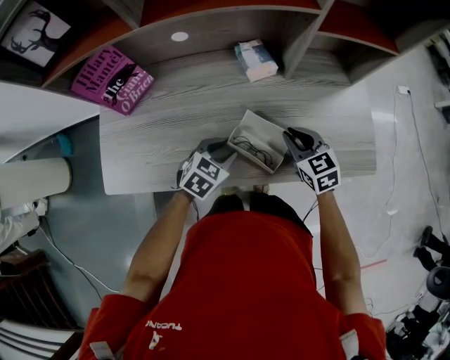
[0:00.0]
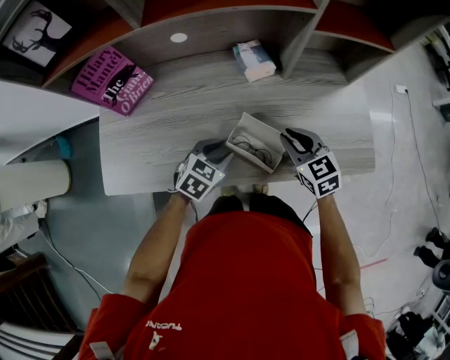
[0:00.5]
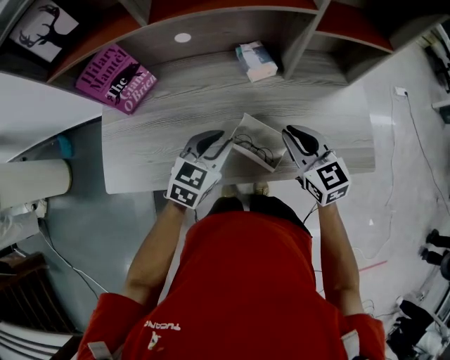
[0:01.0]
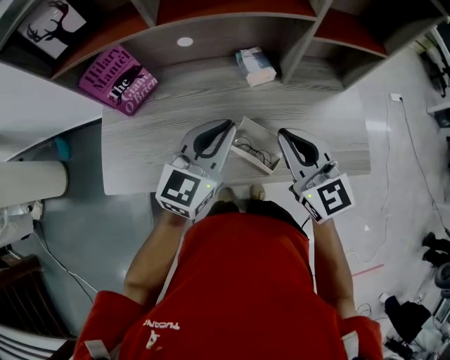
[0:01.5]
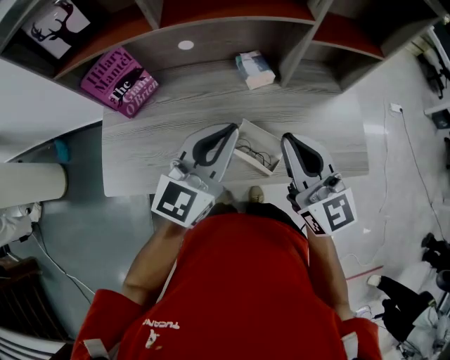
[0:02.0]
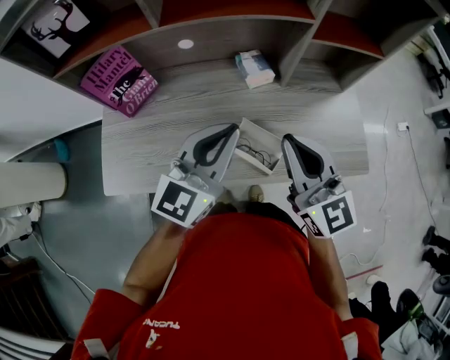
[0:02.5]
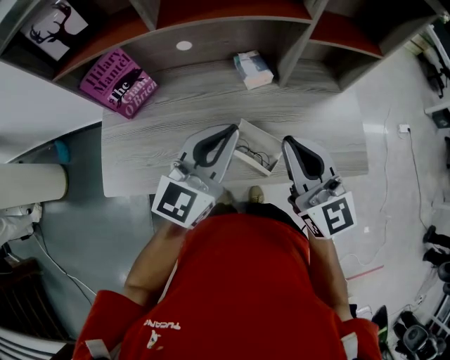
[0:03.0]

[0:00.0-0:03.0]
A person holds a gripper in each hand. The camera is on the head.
0:00.0 to 0:01.5: The grippers both shift upward by approximately 20 cm. The right gripper turns by roughly 30 degrees; the left gripper tilts its fingers about 40 degrees upward, and closes.
0:01.5 to 0:03.0: The left gripper moves about 5 cm. The right gripper changes place by approximately 5 cm.

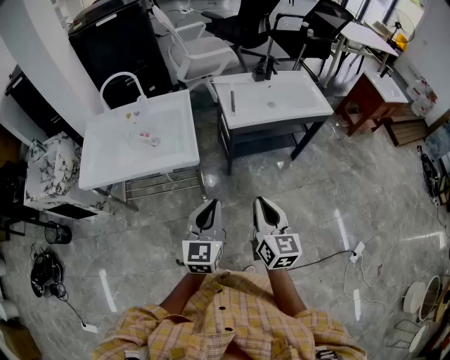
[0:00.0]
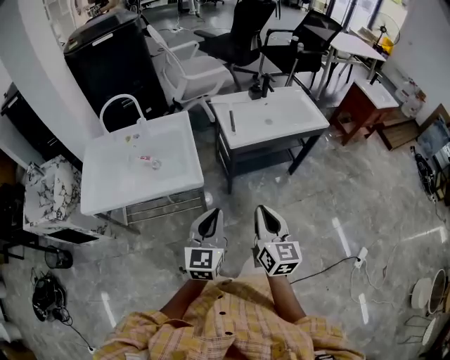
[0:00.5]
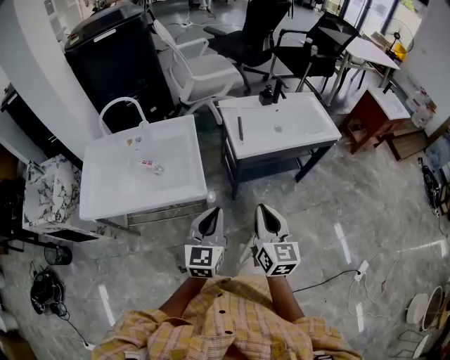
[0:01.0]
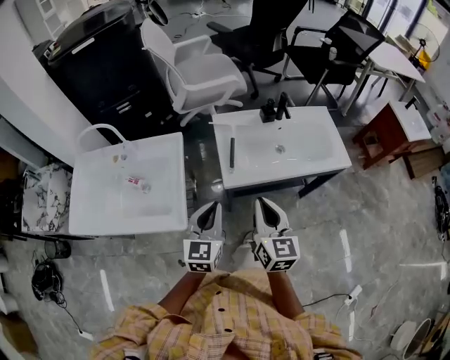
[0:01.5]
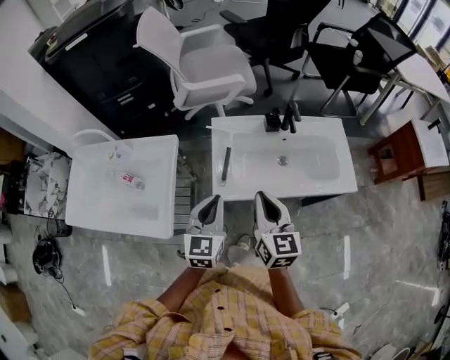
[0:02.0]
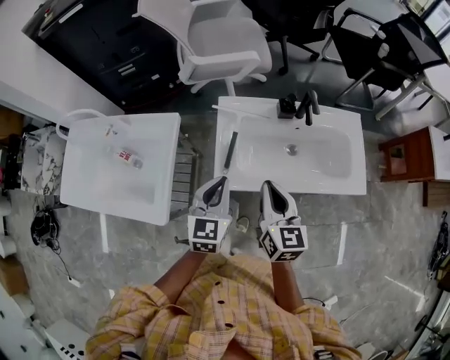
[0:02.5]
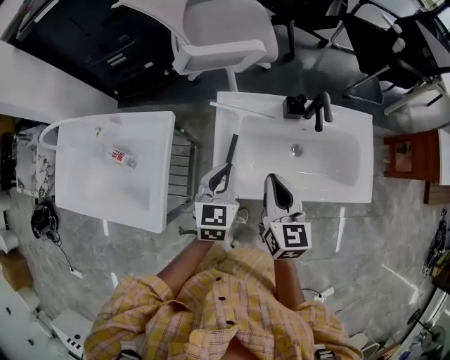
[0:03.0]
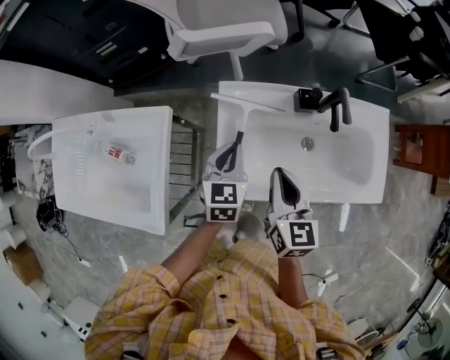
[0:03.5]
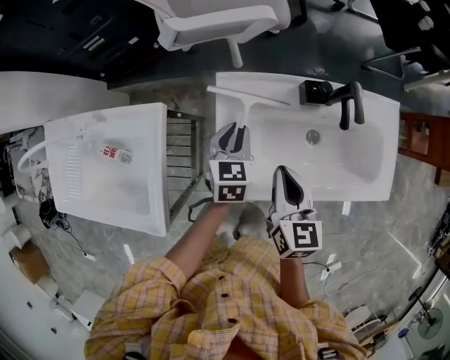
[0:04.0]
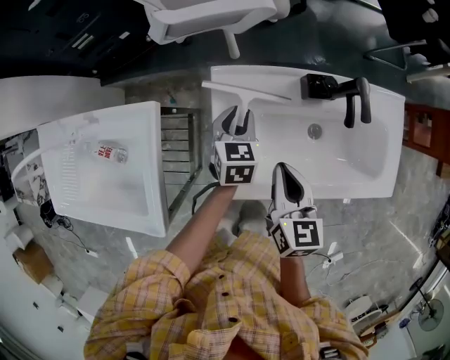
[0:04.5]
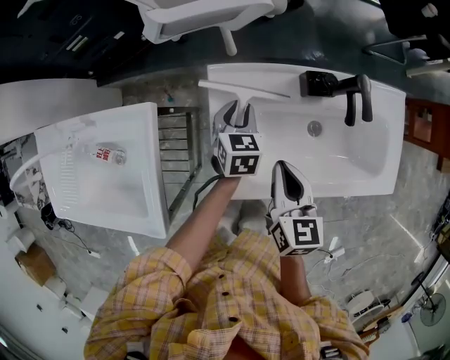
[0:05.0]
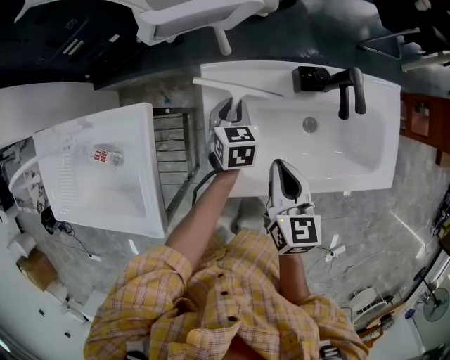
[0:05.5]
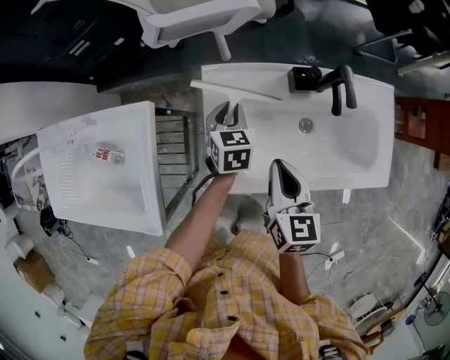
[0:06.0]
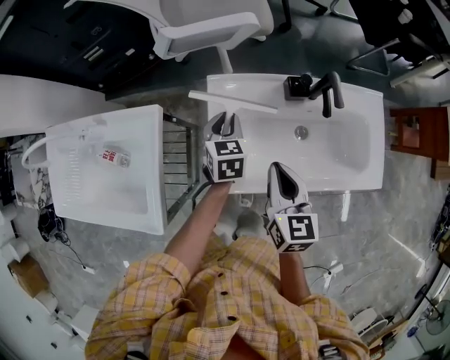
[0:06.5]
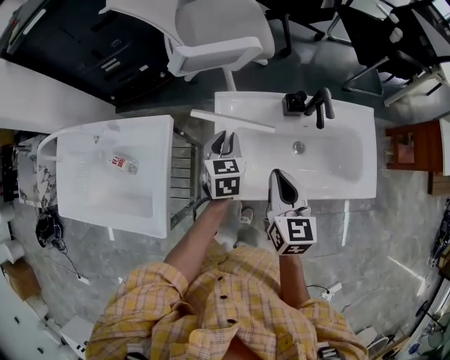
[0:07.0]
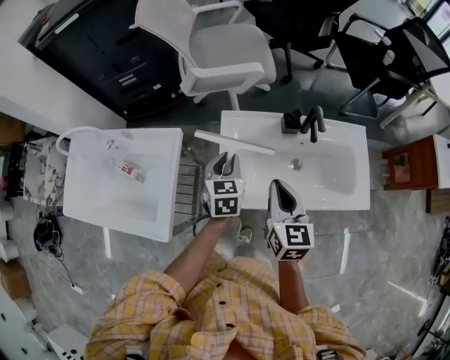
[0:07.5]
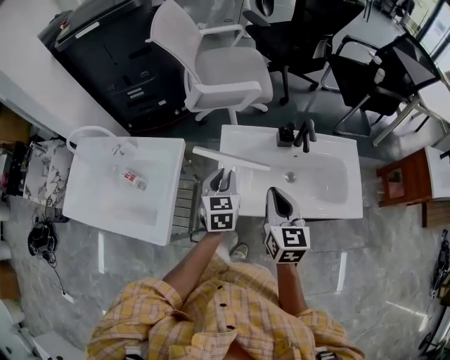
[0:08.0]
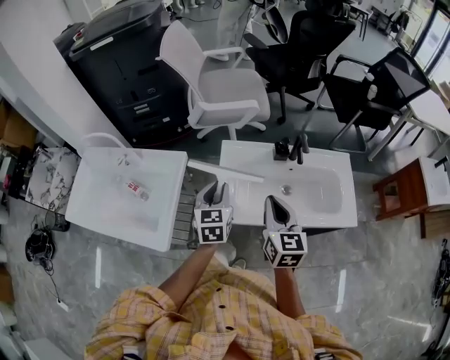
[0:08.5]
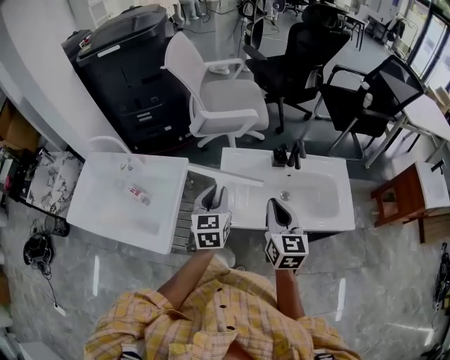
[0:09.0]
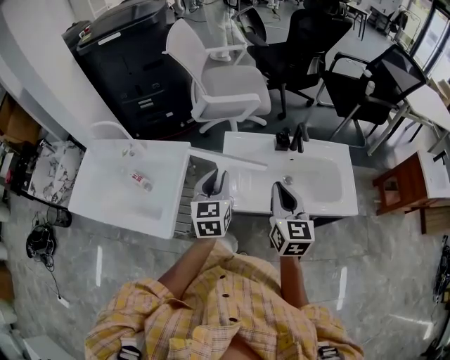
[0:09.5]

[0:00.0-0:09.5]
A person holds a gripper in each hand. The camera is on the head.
0:00.0 to 0:02.0: The two grippers travel together, forward, roughly 40 cm.
0:02.0 to 0:04.0: Both grippers move forward and downward, some 25 cm. The left gripper changes its angle by some 20 degrees.
0:04.0 to 0:05.5: The left gripper moves downward, about 5 cm.
0:05.5 to 0:07.5: Both grippers travel together upward and backward, some 15 cm.
0:07.5 to 0:09.5: The left gripper moves upward and backward, some 15 cm; the right gripper goes about 10 cm upward and backward.

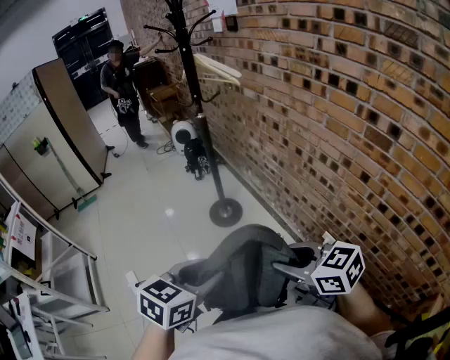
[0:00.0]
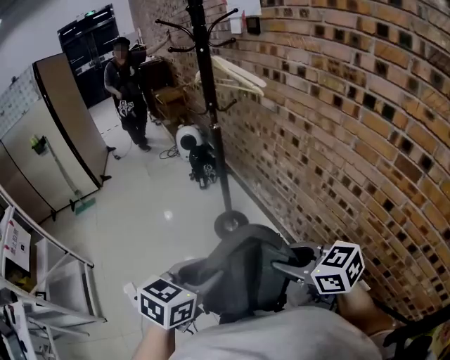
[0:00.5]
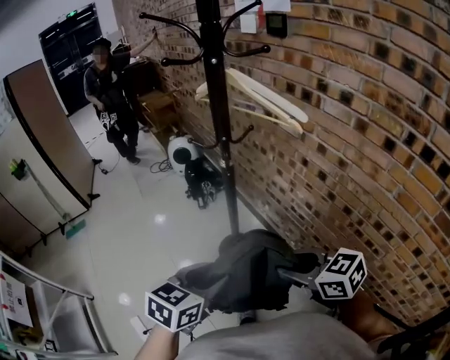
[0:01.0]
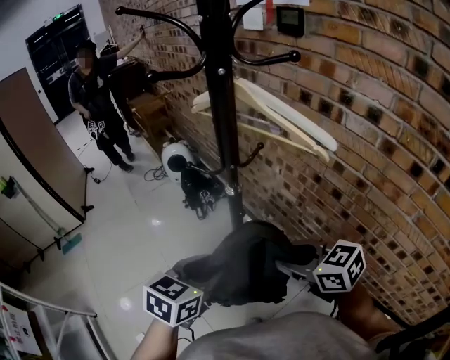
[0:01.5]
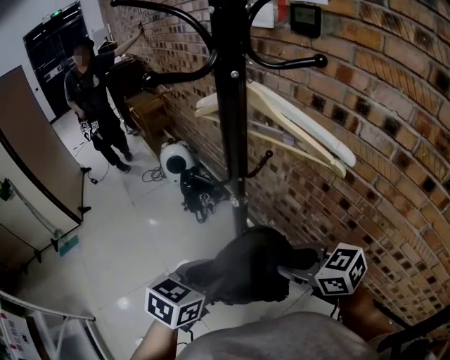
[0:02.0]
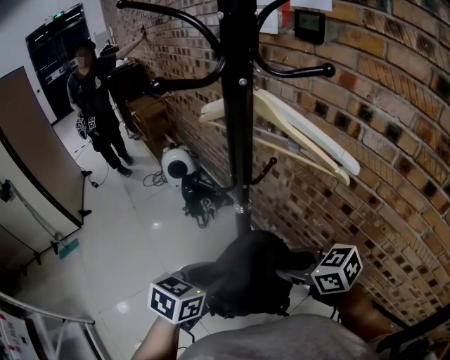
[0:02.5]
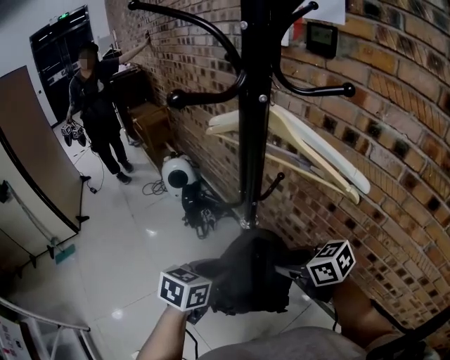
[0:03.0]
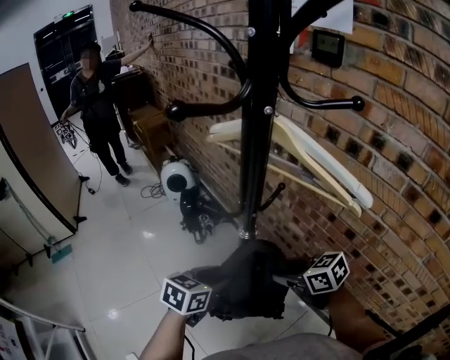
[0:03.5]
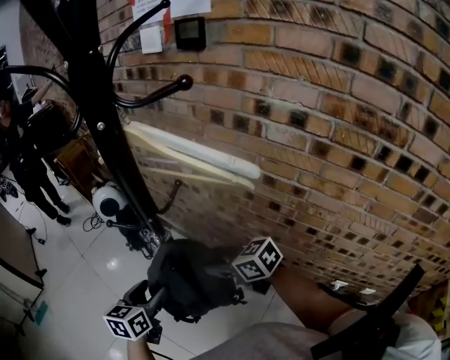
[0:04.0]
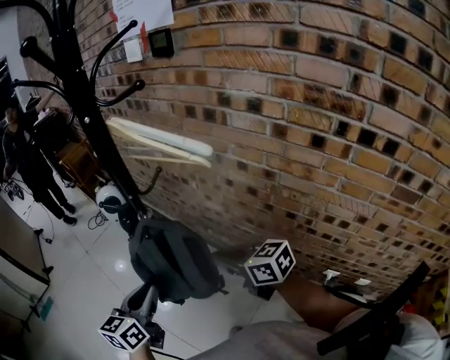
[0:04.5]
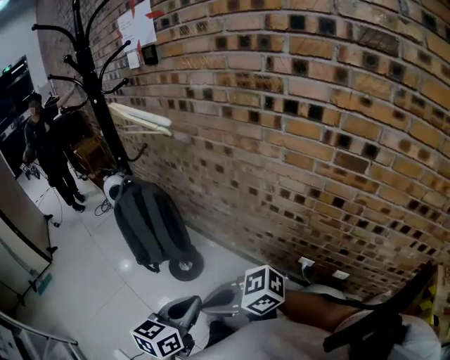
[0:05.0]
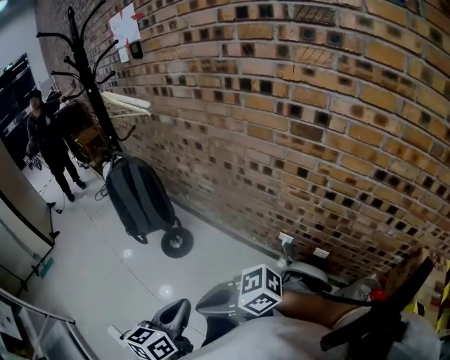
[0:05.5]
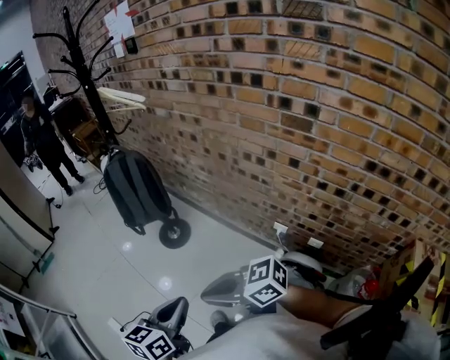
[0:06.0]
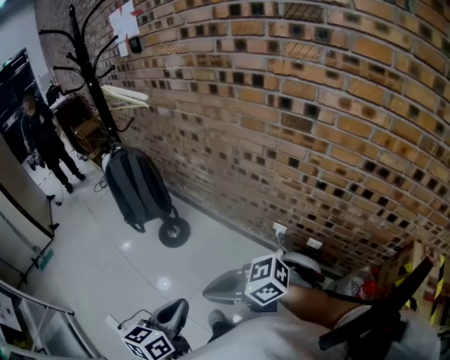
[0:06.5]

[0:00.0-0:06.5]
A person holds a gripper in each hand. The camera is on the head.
0:00.0 to 0:02.0: The two grippers travel together, forward, about 60 cm.
0:02.0 to 0:04.5: The right gripper goes about 5 cm to the right, moves roughly 10 cm forward and comes back, changes its angle by about 20 degrees, and closes its fingers, while the left gripper reaches roughly 10 cm forward, then returns, and opens, then closes again.
0:04.5 to 0:06.5: Both grippers are carried some 50 cm. The right gripper turns by some 30 degrees.

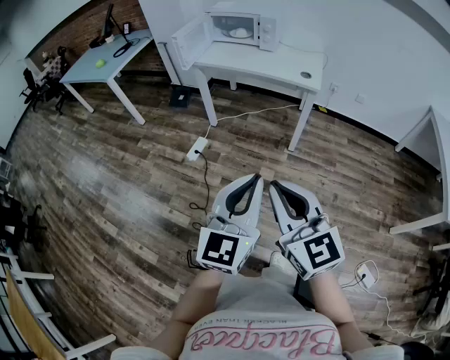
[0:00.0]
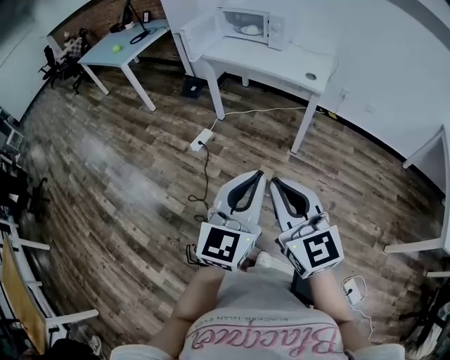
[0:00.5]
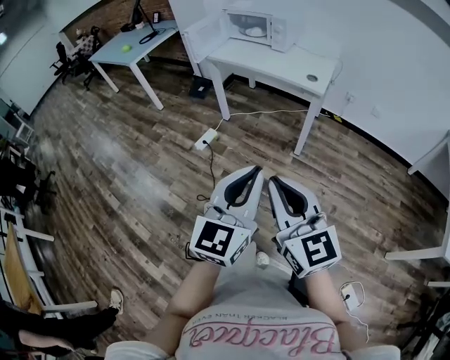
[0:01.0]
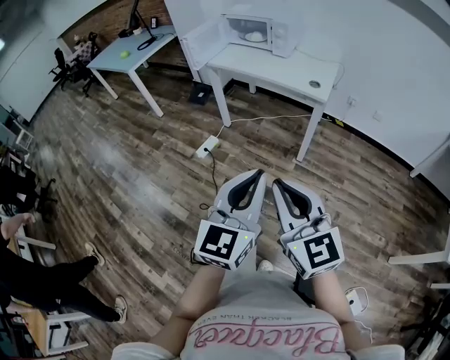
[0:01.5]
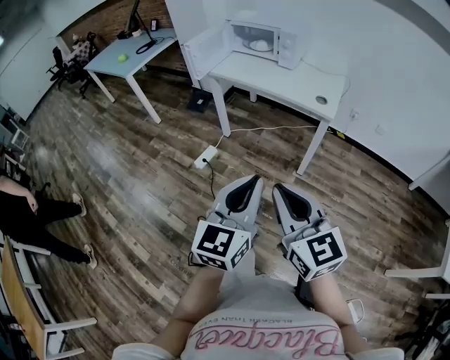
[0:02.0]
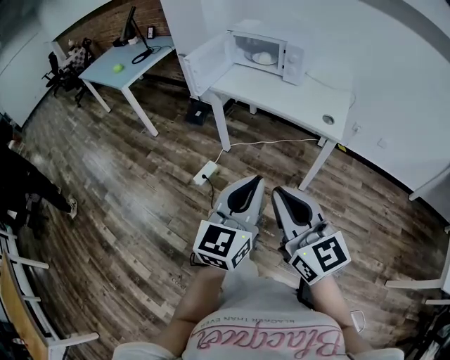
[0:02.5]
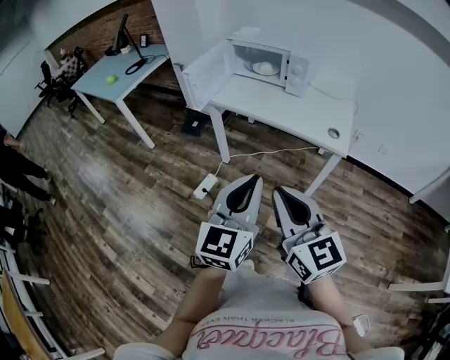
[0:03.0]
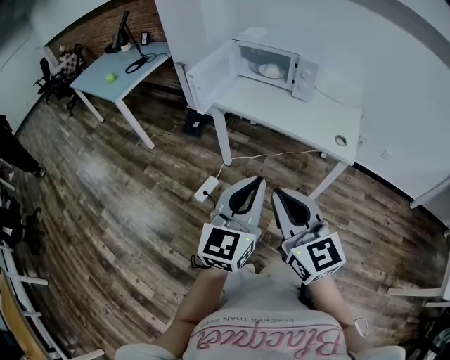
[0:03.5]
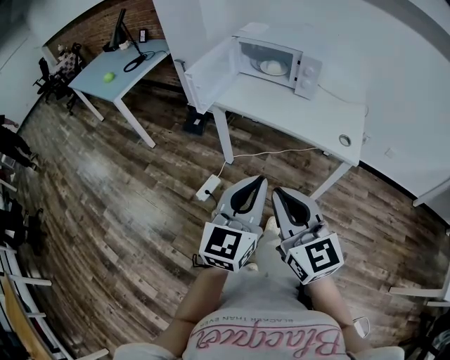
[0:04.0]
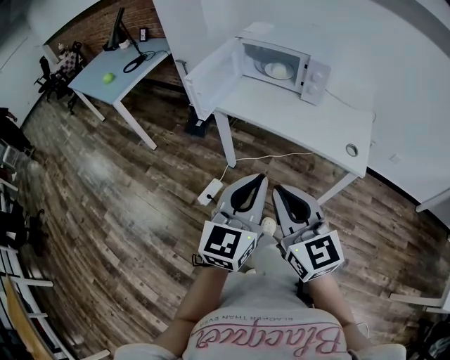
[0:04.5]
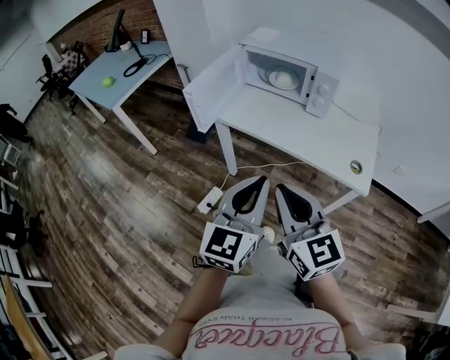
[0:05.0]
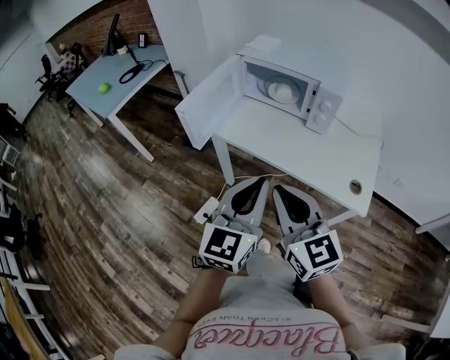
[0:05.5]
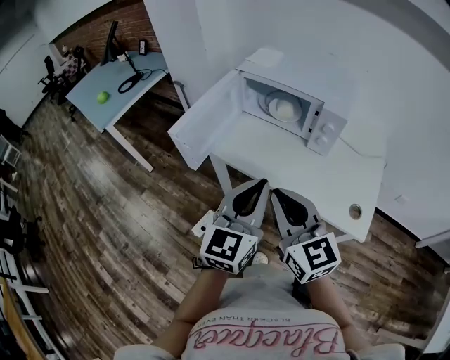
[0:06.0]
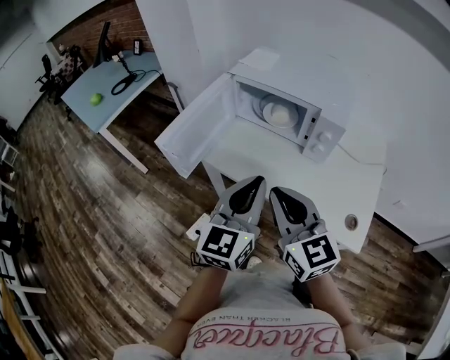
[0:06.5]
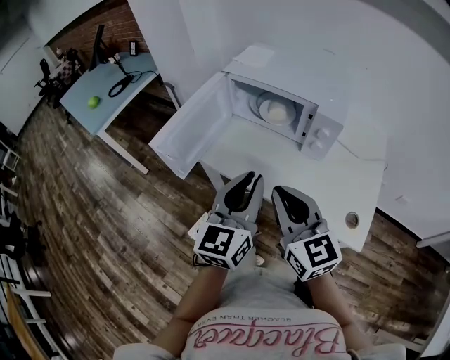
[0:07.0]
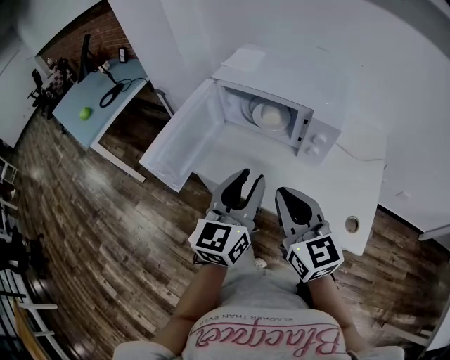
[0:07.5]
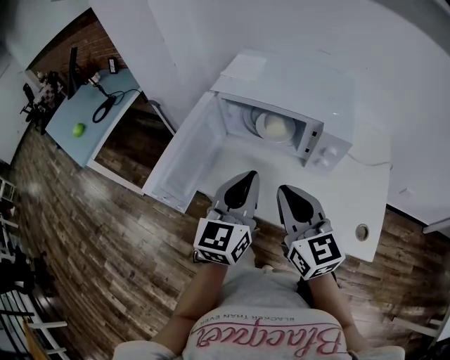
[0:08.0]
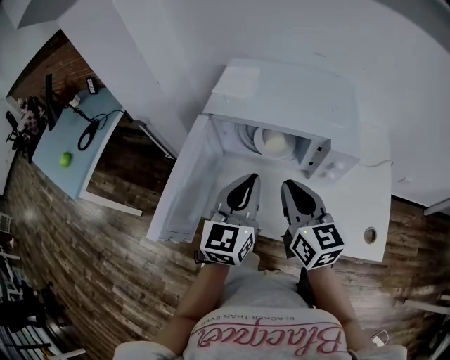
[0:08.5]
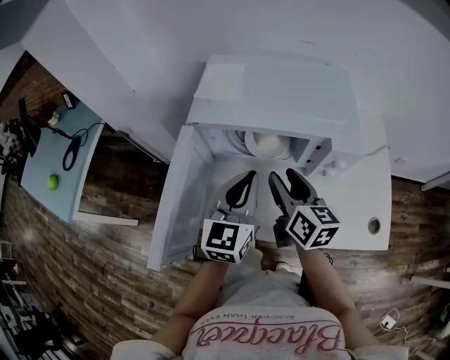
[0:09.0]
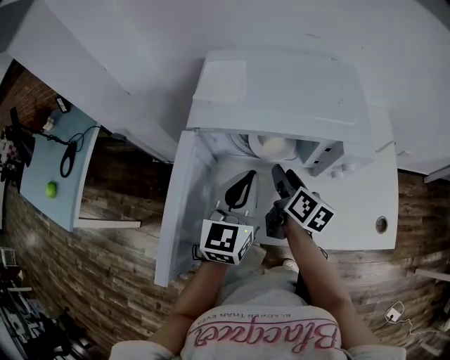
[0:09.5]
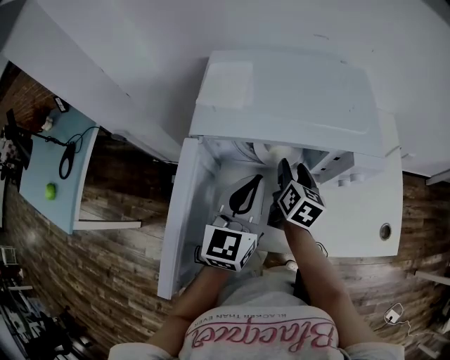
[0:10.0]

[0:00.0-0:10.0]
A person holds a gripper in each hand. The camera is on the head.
0:00.0 to 0:02.0: Both grippers travel together forward and to the right, approximately 15 cm.
0:02.0 to 0:04.0: Both grippers move forward, approximately 25 cm.
0:04.0 to 0:06.0: Both grippers move forward, roughly 30 cm.
0:06.0 to 0:08.0: The grippers both shift forward by approximately 15 cm. The left gripper opens and closes again.
0:08.0 to 0:10.0: The right gripper changes place by roughly 30 cm, swivels approximately 60 degrees, and opens up. The left gripper ends up approximately 15 cm from where it was.
